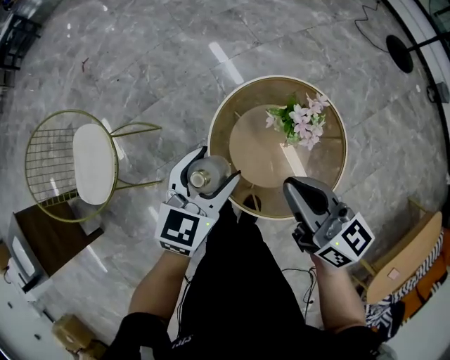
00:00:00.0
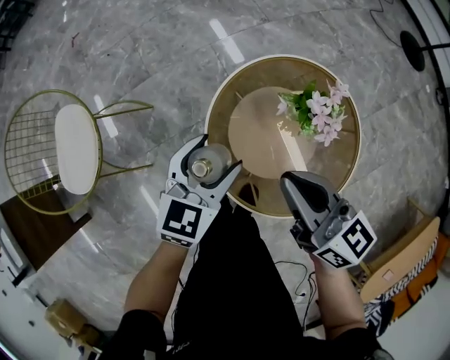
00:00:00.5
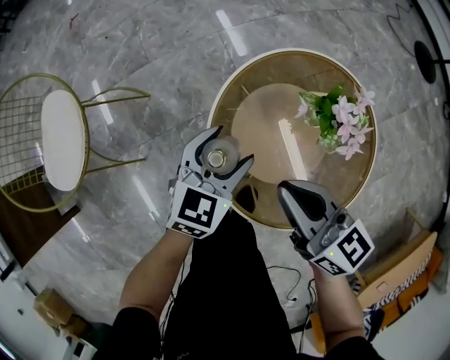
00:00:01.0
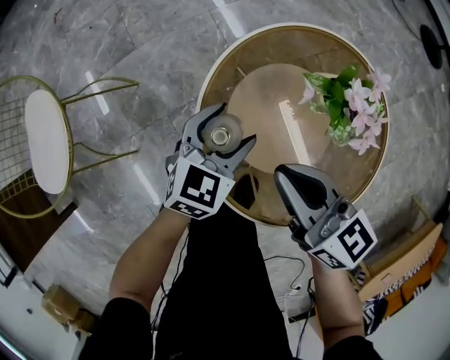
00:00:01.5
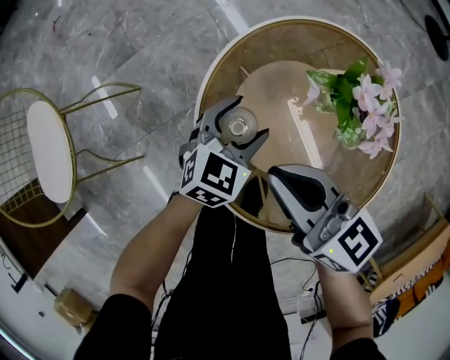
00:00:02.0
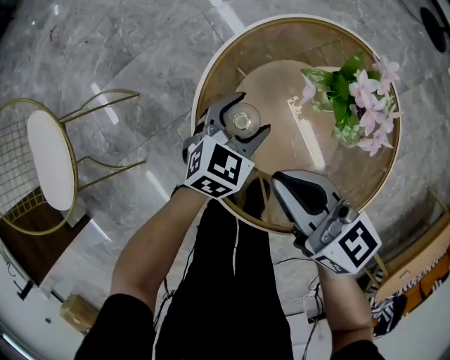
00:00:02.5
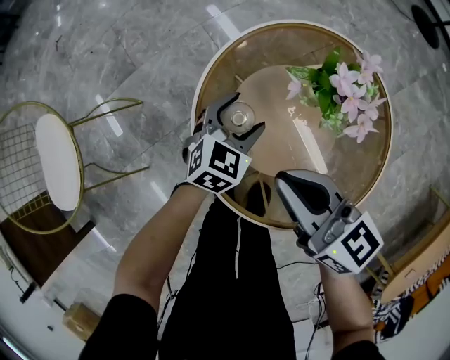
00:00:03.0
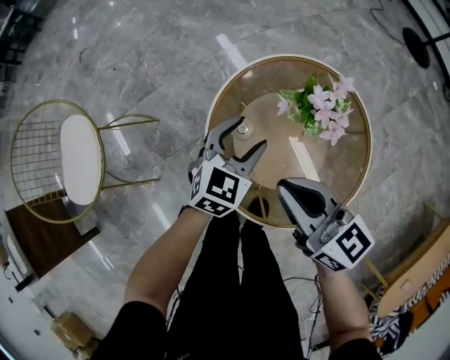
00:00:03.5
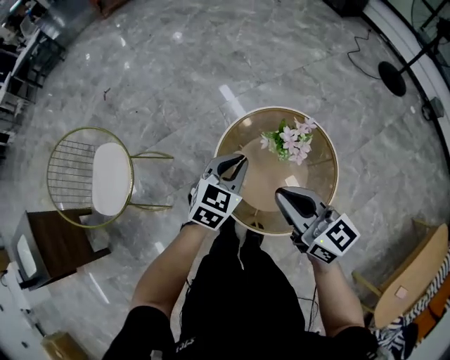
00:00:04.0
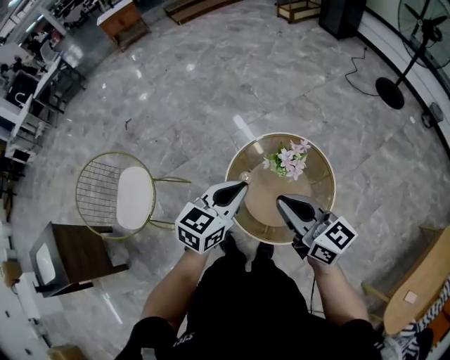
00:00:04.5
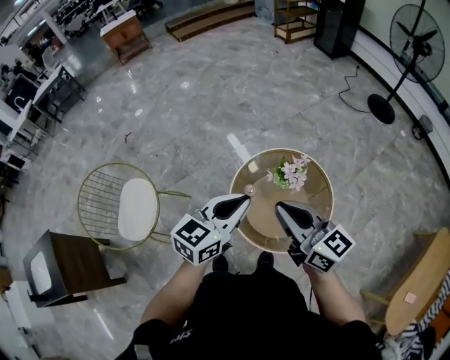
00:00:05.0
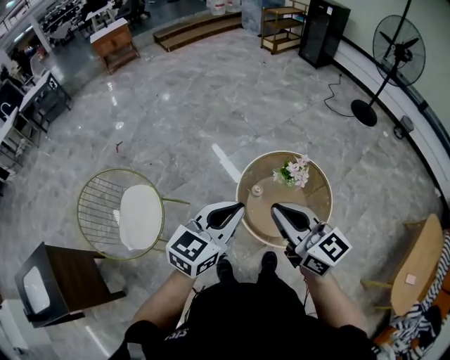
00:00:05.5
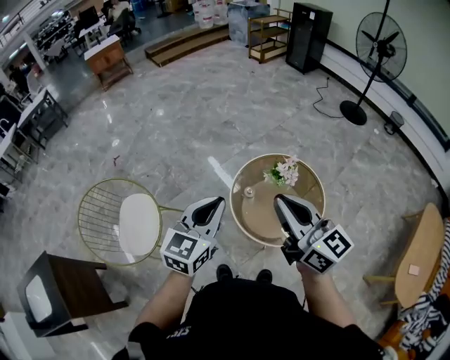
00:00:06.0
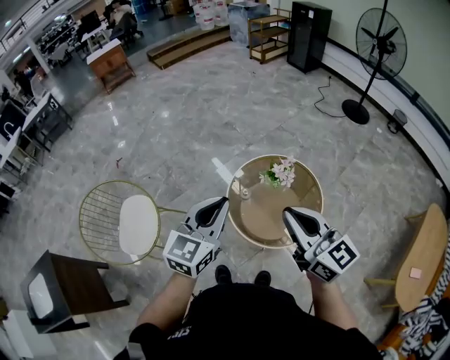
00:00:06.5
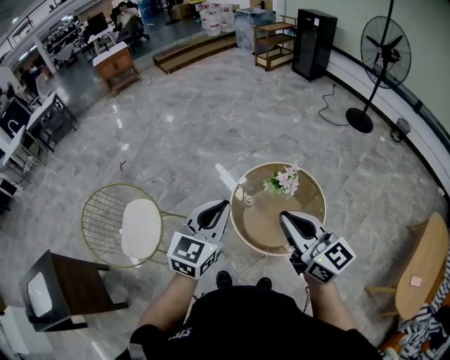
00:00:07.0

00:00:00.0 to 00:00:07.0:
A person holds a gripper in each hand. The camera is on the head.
00:00:00.0 to 00:00:02.0: The two grippers go about 30 cm downward.
00:00:02.0 to 00:00:03.5: The right gripper moves upward and backward, about 15 cm. Meanwhile the left gripper heads upward, covering roughly 15 cm.
00:00:03.5 to 00:00:05.0: The grippers both shift upward by approximately 40 cm. The left gripper turns by about 20 degrees, and closes up.
00:00:05.0 to 00:00:07.0: The left gripper shifts approximately 15 cm to the left, backward and upward, while the right gripper goes about 15 cm backward and upward, and goes to the left and returns, approximately 15 cm each way.

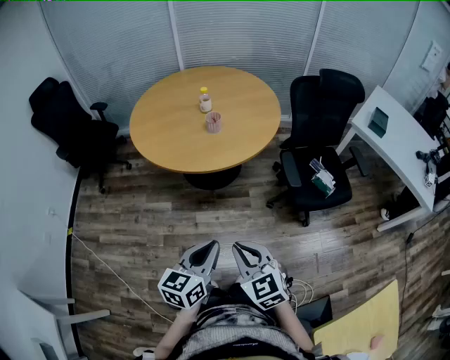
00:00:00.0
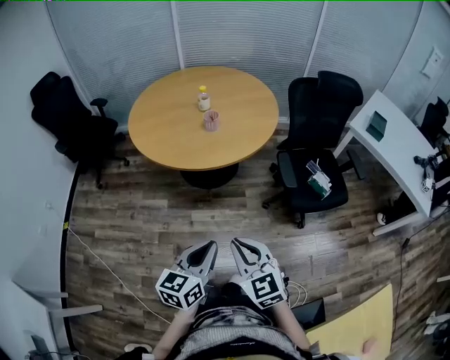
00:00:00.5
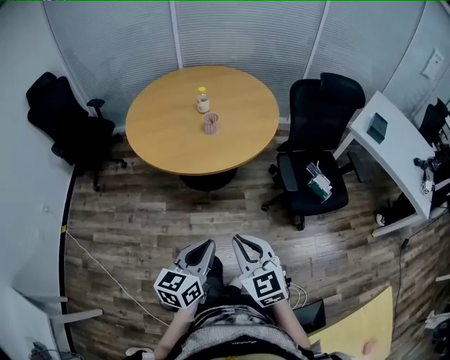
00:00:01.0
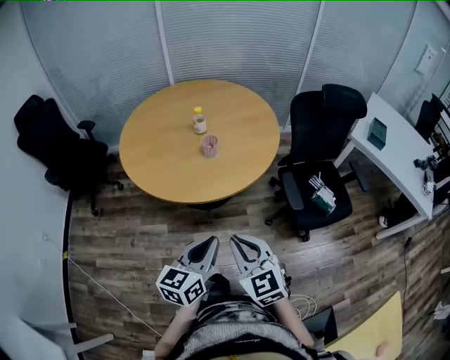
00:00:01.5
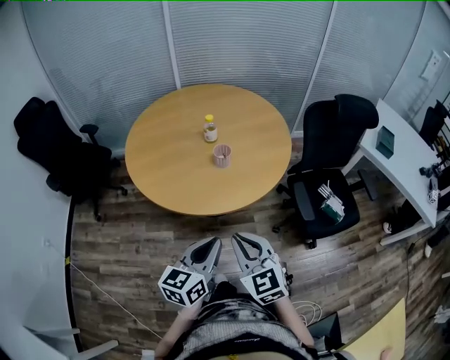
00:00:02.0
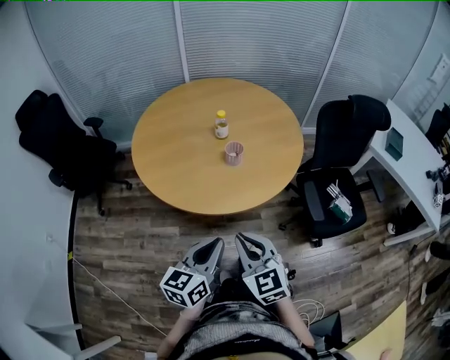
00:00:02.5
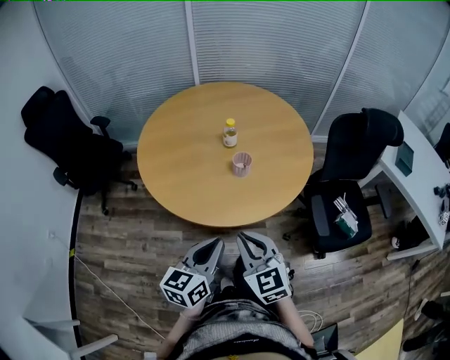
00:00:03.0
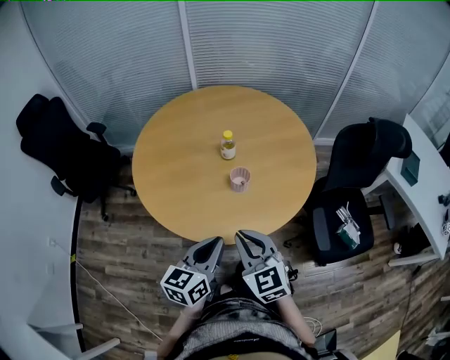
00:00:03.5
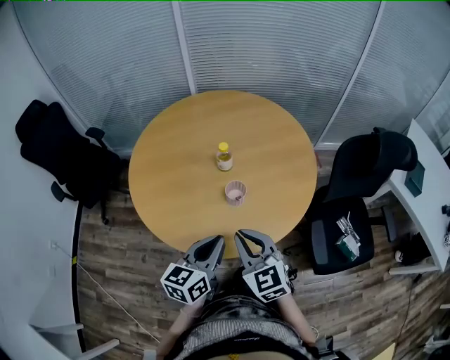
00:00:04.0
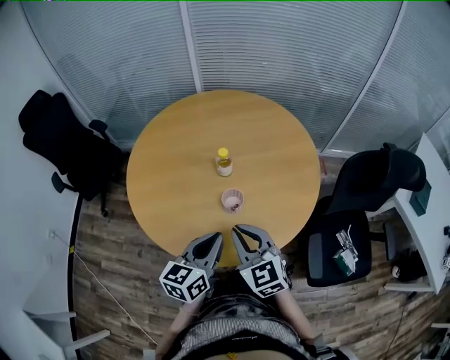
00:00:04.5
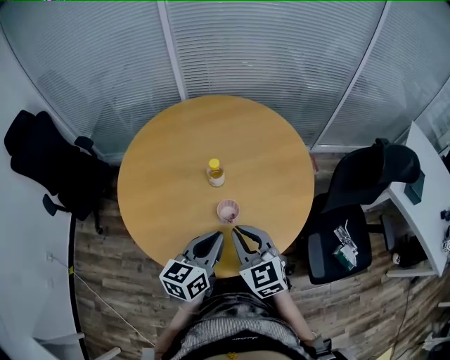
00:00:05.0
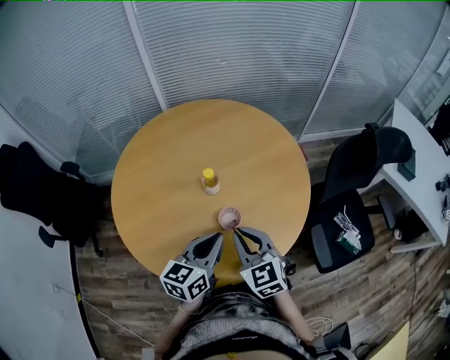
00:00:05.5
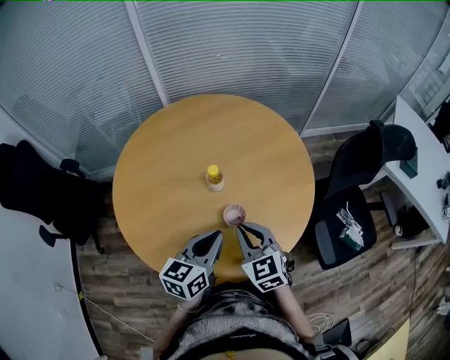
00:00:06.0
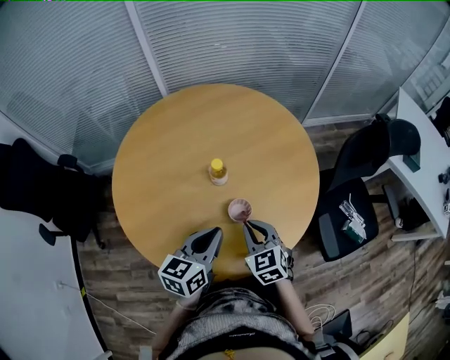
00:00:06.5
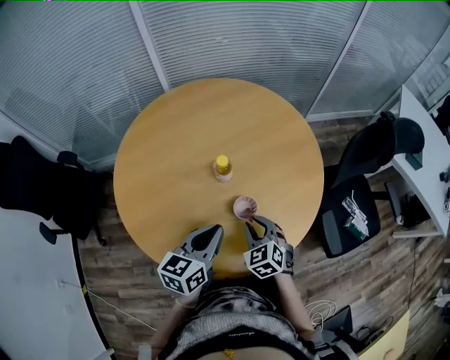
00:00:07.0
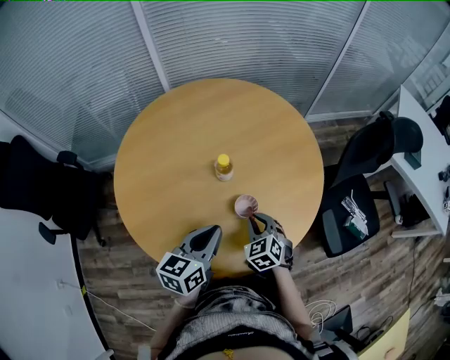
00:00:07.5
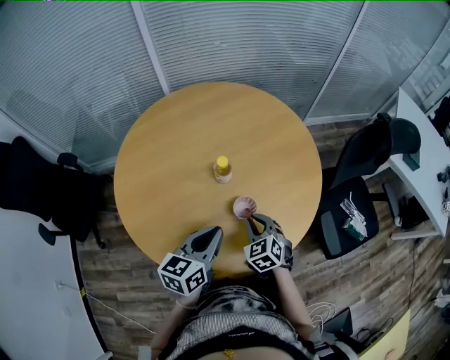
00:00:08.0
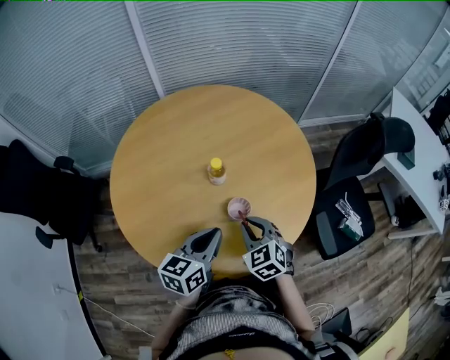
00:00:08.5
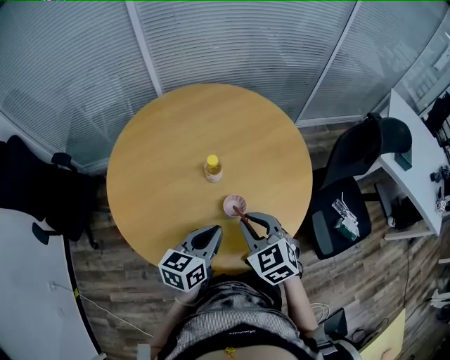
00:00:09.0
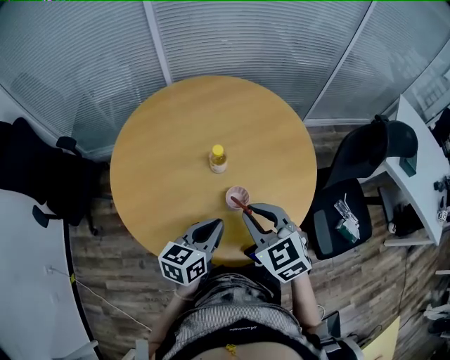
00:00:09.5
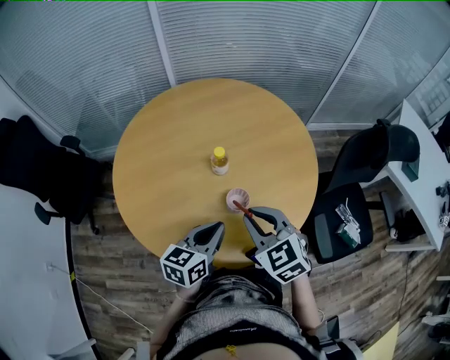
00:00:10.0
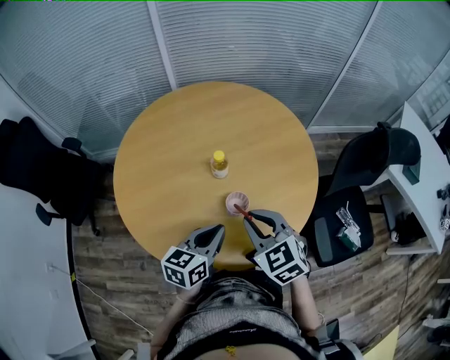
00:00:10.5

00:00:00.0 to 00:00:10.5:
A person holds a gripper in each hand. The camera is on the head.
00:00:00.0 to 00:00:02.0: Both grippers move forward, approximately 20 cm.
00:00:02.0 to 00:00:04.0: Both grippers travel together forward, some 25 cm.
00:00:04.0 to 00:00:06.5: The right gripper moves forward and downward, about 20 cm, and swivels some 20 degrees; the left gripper moves forward, some 15 cm.
00:00:08.5 to 00:00:10.5: The right gripper is displaced upward by some 10 cm.

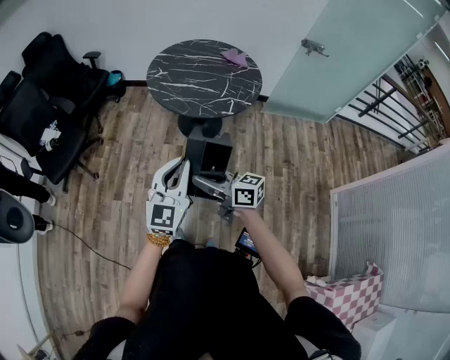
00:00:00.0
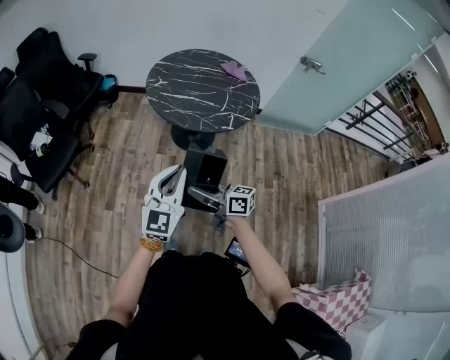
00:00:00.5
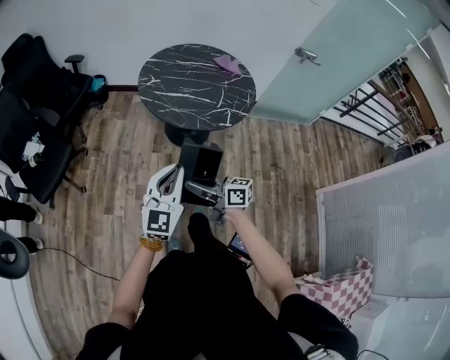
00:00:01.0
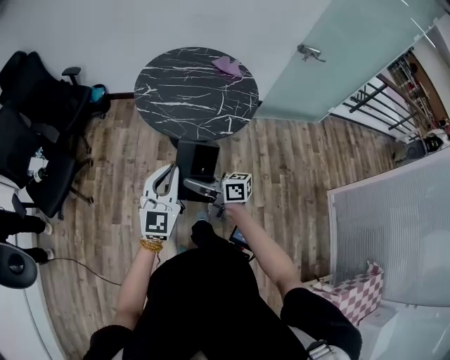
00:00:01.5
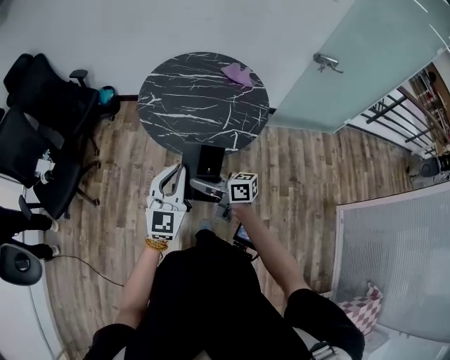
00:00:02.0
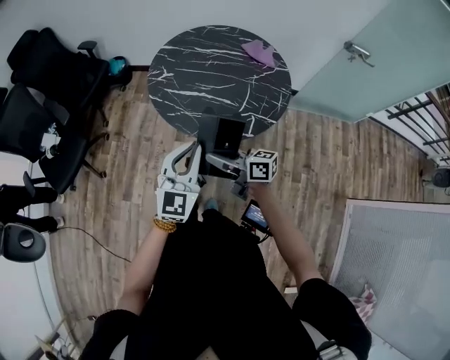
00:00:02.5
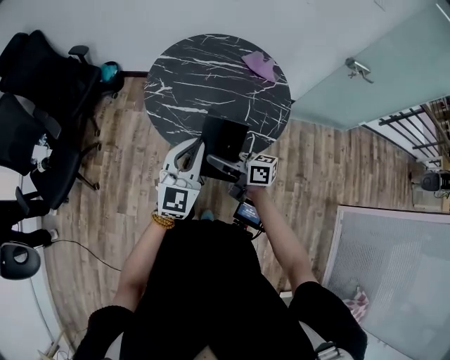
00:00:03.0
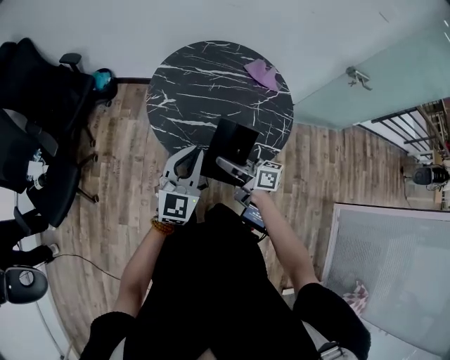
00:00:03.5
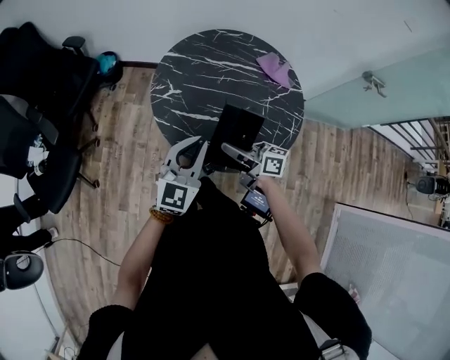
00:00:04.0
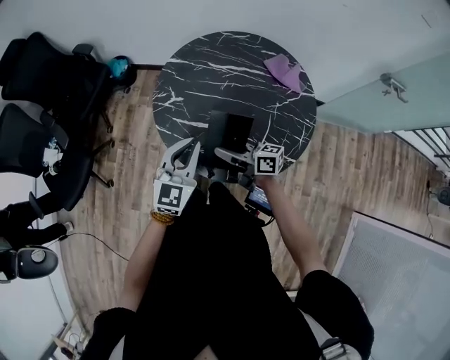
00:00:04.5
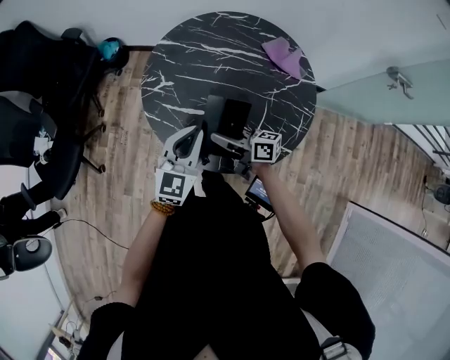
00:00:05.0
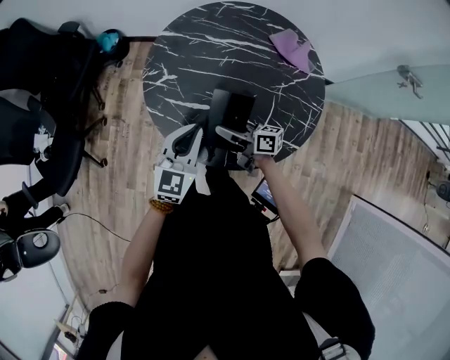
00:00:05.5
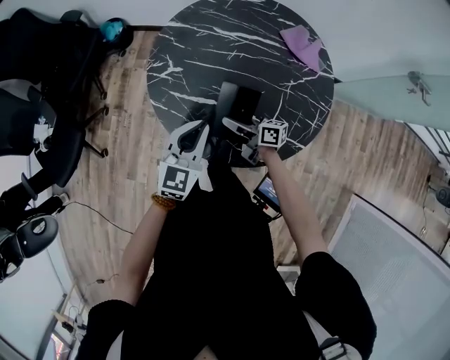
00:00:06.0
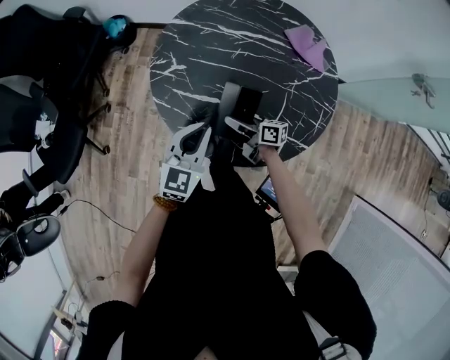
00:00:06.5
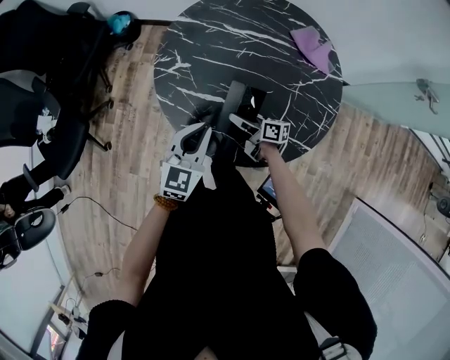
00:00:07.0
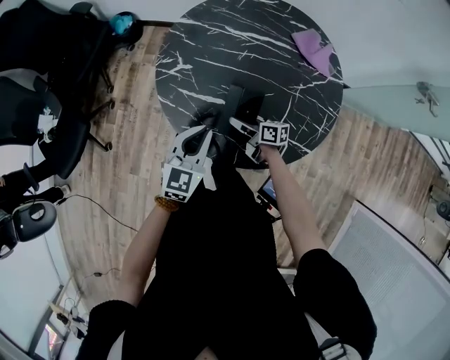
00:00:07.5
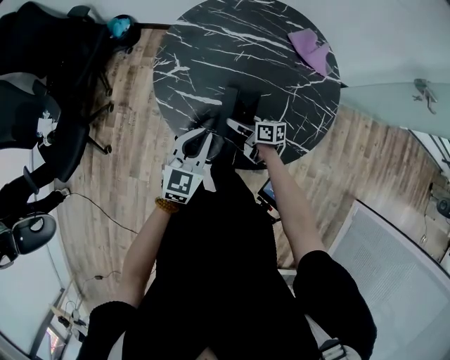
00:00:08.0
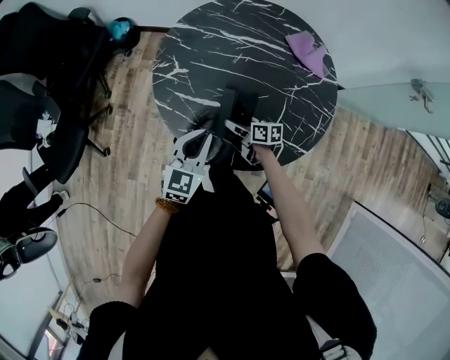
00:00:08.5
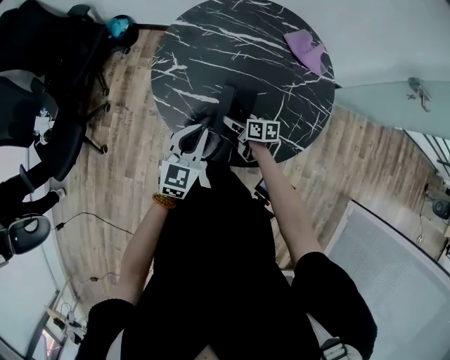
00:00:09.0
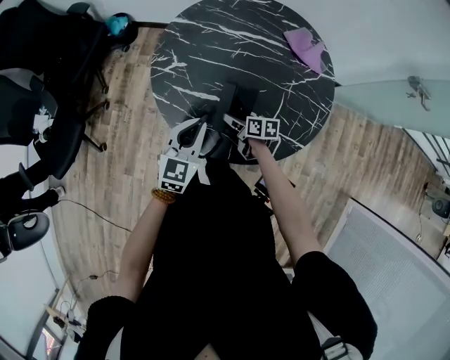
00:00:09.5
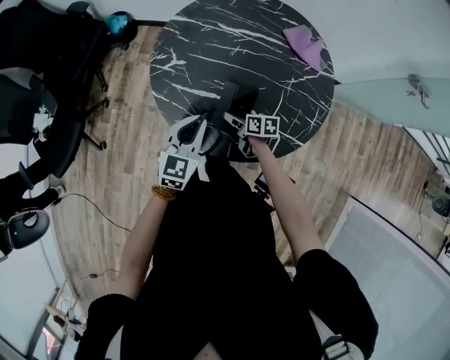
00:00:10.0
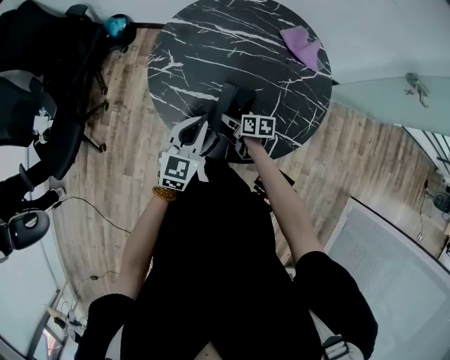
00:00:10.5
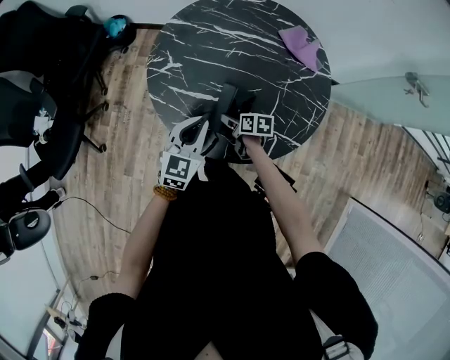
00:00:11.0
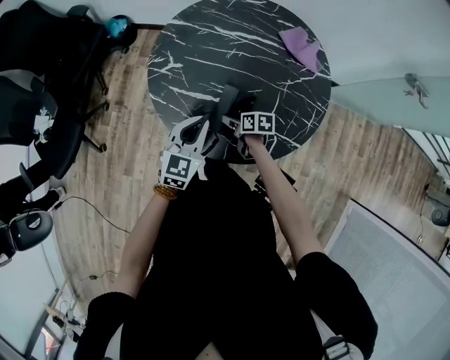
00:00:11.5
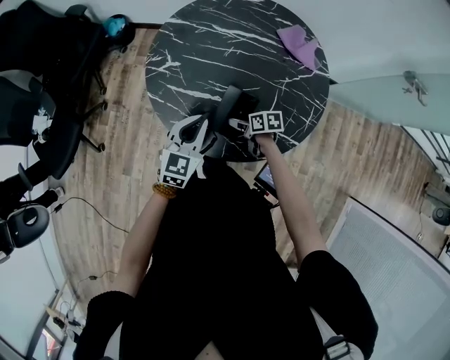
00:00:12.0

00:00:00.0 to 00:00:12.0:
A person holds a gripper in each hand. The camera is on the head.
00:00:00.0 to 00:00:02.0: Both grippers travel together forward, roughly 25 cm.
00:00:02.0 to 00:00:04.0: The grippers both shift forward by approximately 25 cm.
00:00:04.0 to 00:00:06.0: The left gripper travels downward, to the right and forward by approximately 15 cm. The right gripper goes approximately 20 cm downward and forward.
00:00:06.0 to 00:00:08.0: The right gripper travels downward by some 10 cm.
00:00:08.0 to 00:00:10.0: The grippers move only a little.
00:00:10.0 to 00:00:12.0: There are only small adjustments of the grippers.
